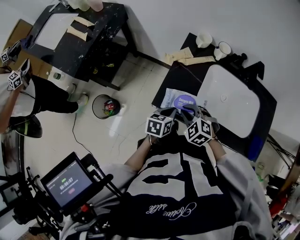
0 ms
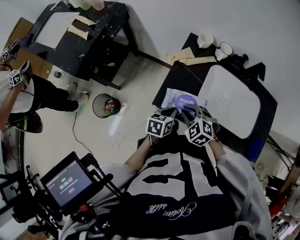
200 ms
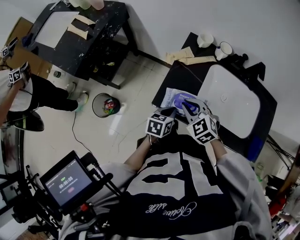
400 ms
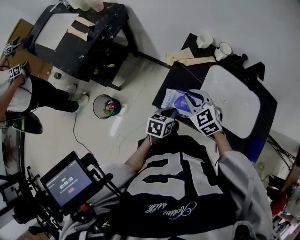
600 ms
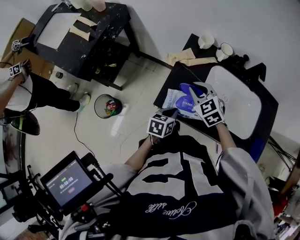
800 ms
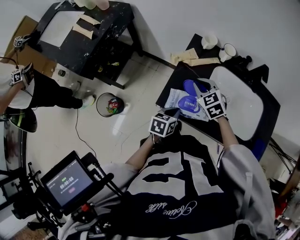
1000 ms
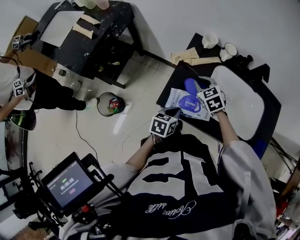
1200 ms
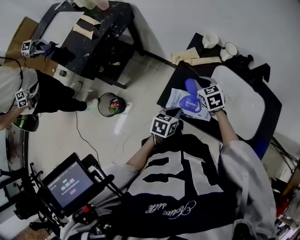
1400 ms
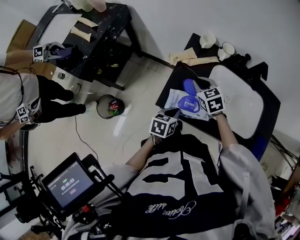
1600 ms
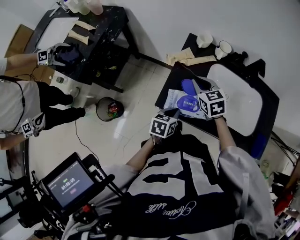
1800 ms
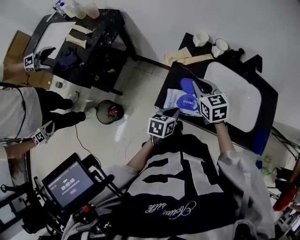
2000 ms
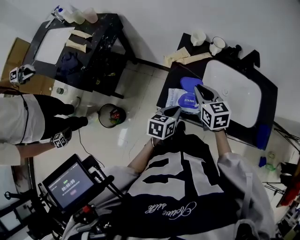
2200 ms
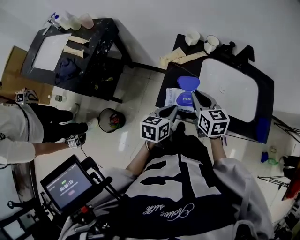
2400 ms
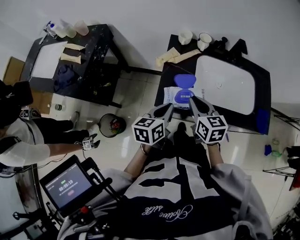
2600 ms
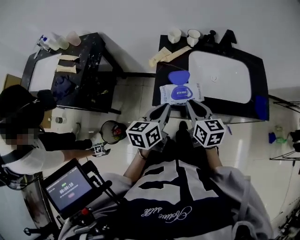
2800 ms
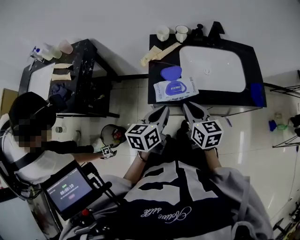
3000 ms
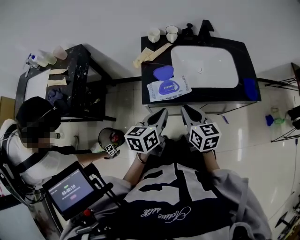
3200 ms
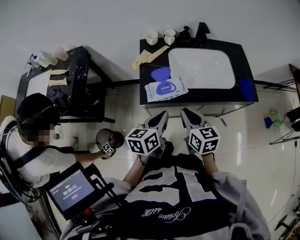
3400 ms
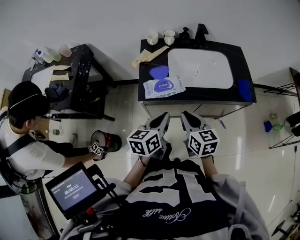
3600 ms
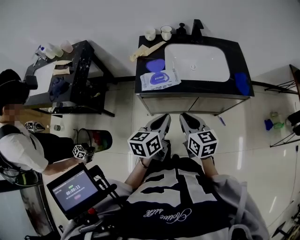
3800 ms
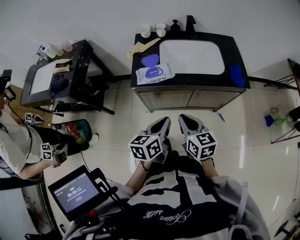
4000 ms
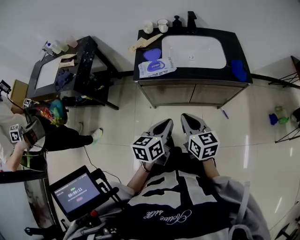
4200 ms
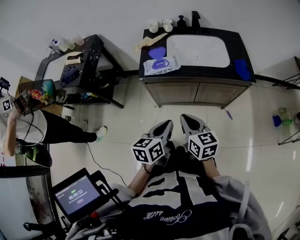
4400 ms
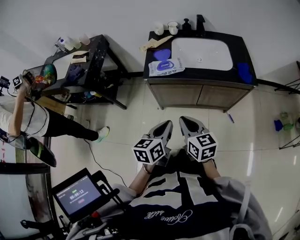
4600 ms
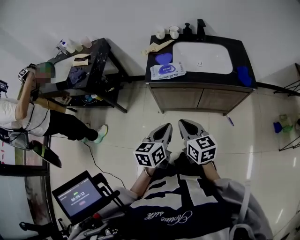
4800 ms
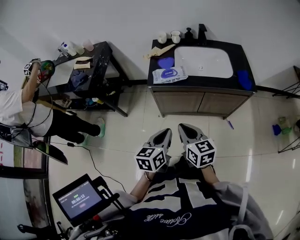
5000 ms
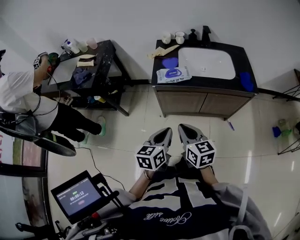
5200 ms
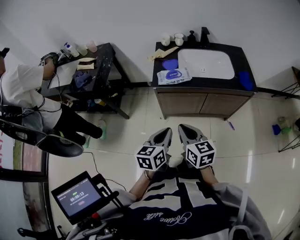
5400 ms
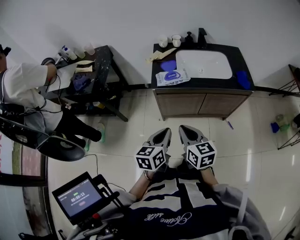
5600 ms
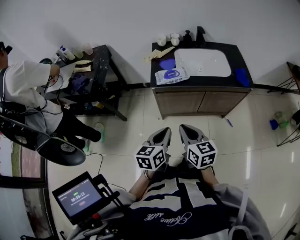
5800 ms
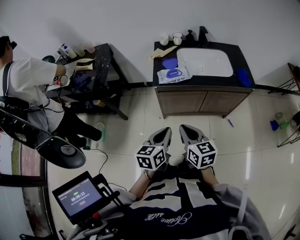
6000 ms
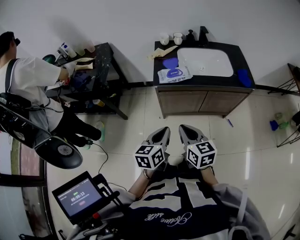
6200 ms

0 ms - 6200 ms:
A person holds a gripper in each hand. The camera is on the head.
0 ms - 1600 ms: The right gripper is displaced forward by some 15 cm, and changes its angle by roughly 30 degrees.
1600 ms - 3200 ms: The right gripper goes approximately 25 cm backward, and rotates some 50 degrees, while the left gripper heads upward and backward, covering about 20 cm, and rotates some 20 degrees.
3200 ms - 4600 ms: The left gripper moves backward and to the right, approximately 25 cm; the right gripper goes approximately 20 cm backward.
4600 ms - 6200 ms: Both grippers move to the left, roughly 10 cm.

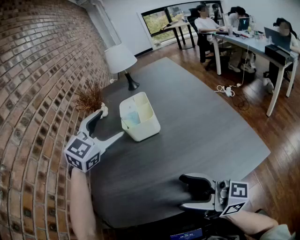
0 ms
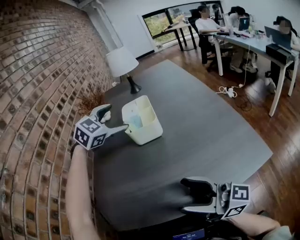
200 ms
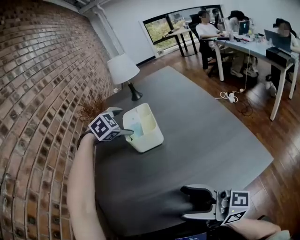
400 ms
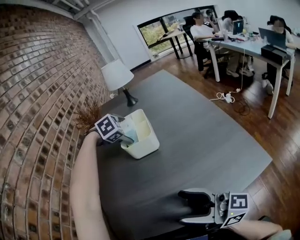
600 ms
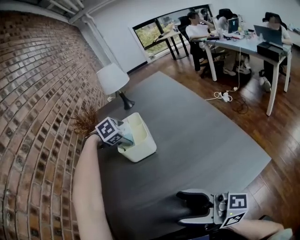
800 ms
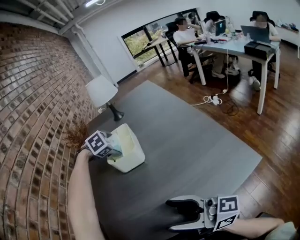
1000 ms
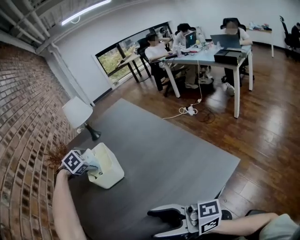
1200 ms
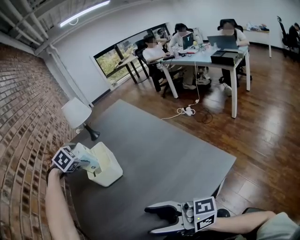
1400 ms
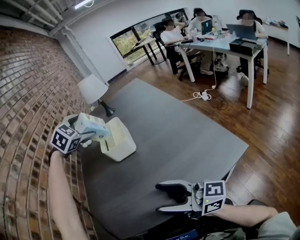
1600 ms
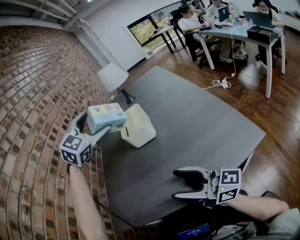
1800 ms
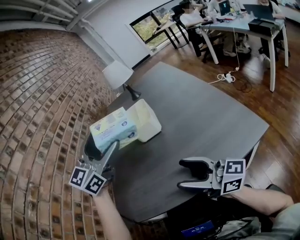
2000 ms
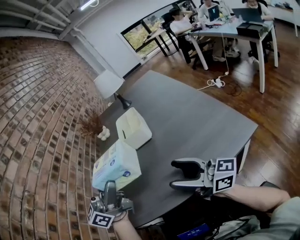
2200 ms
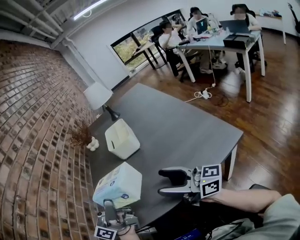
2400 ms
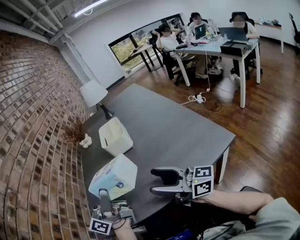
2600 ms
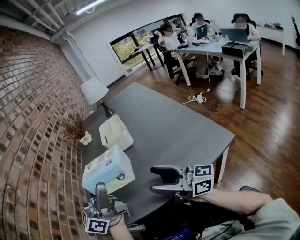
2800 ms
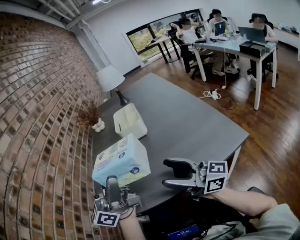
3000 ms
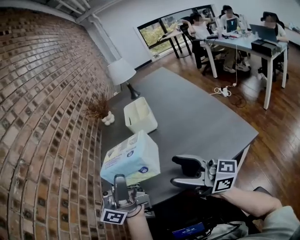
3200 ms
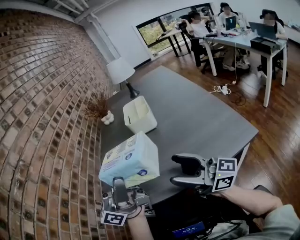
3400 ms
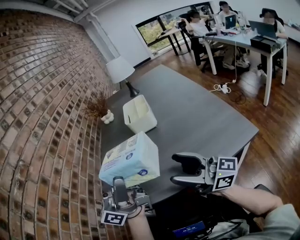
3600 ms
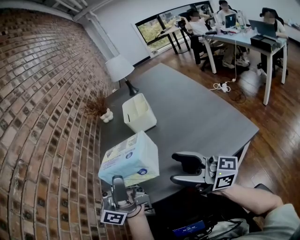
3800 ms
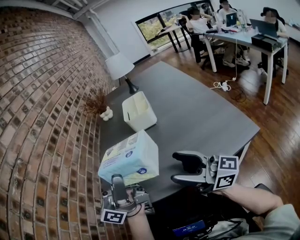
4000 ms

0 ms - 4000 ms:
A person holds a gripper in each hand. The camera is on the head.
0 ms - 1400 ms: The left gripper shifts approximately 15 cm forward and to the right, and angles its fingers downward, by some 30 degrees.
1400 ms - 2600 ms: The left gripper heads backward, covering about 35 cm, and angles its fingers upward, by about 90 degrees.
2600 ms - 4000 ms: The left gripper ends up about 5 cm from where it was.

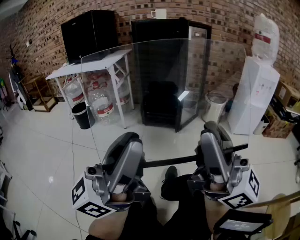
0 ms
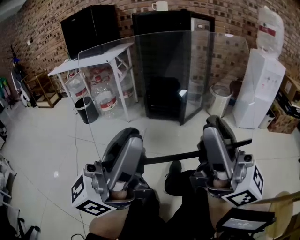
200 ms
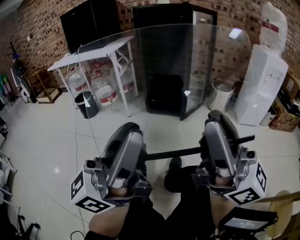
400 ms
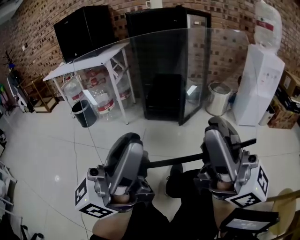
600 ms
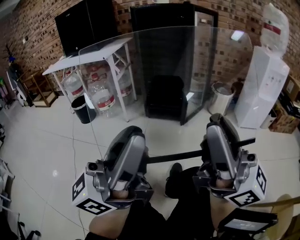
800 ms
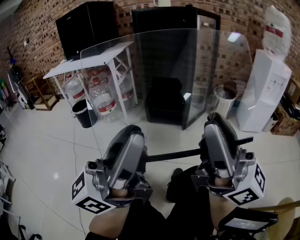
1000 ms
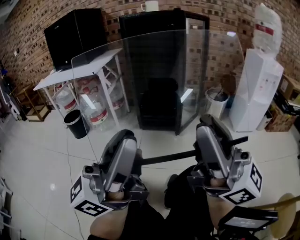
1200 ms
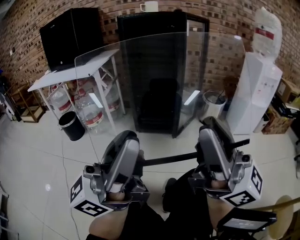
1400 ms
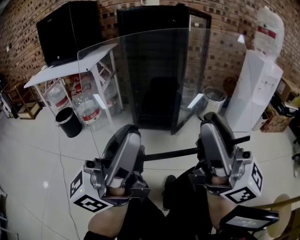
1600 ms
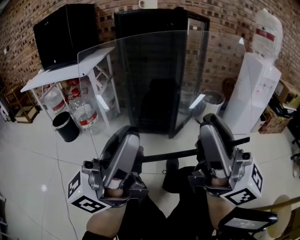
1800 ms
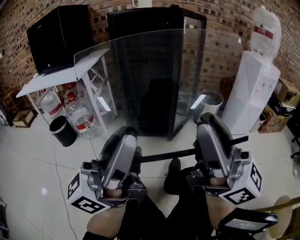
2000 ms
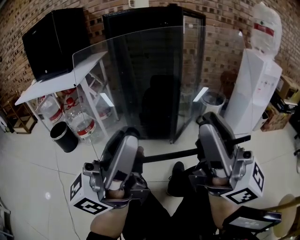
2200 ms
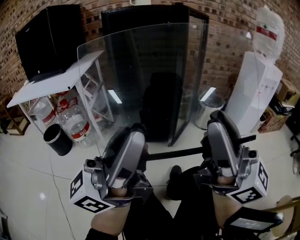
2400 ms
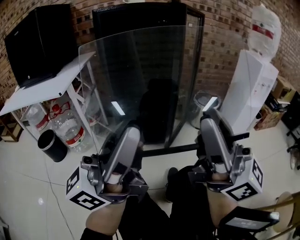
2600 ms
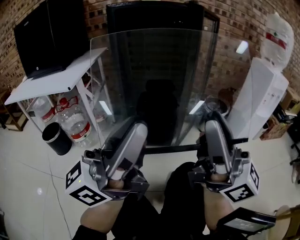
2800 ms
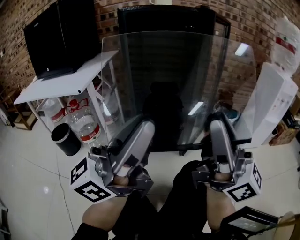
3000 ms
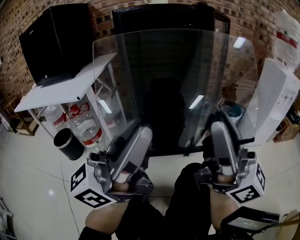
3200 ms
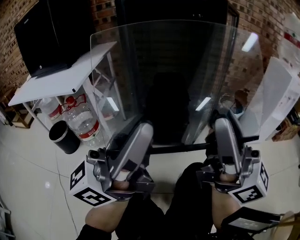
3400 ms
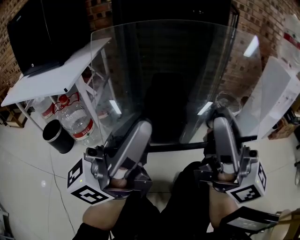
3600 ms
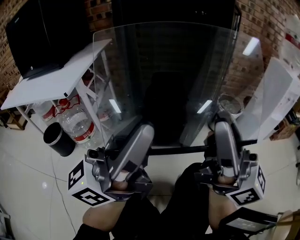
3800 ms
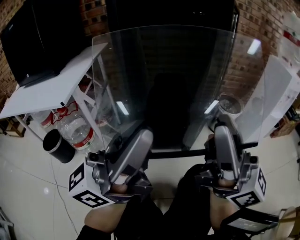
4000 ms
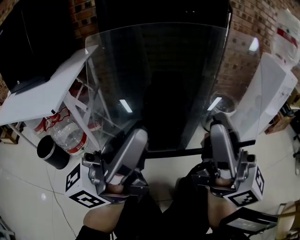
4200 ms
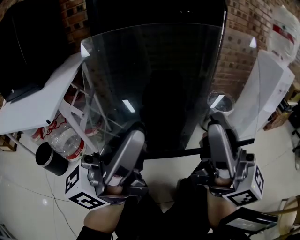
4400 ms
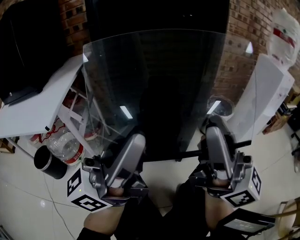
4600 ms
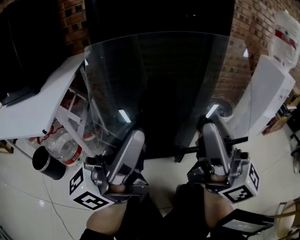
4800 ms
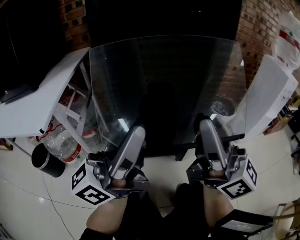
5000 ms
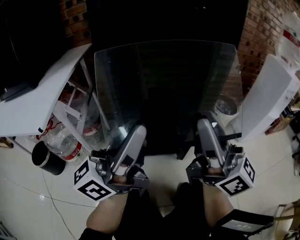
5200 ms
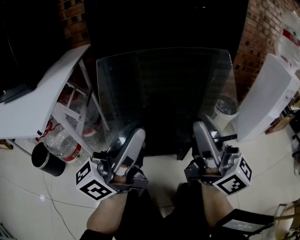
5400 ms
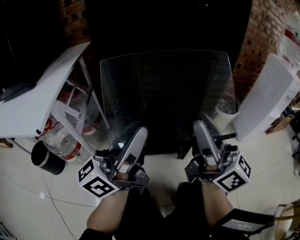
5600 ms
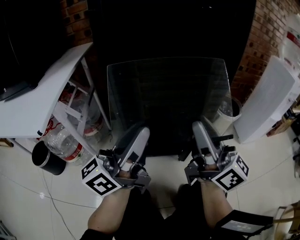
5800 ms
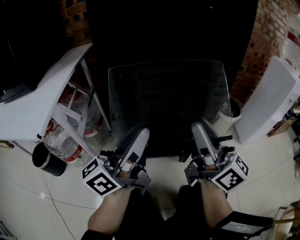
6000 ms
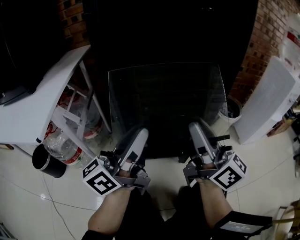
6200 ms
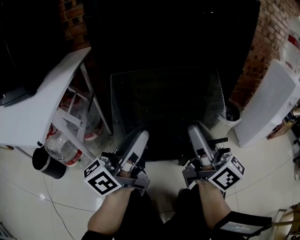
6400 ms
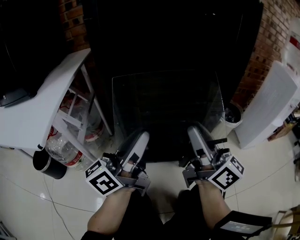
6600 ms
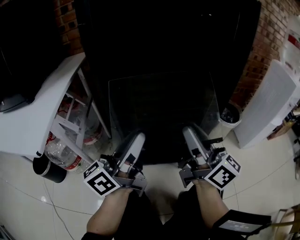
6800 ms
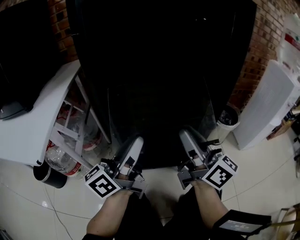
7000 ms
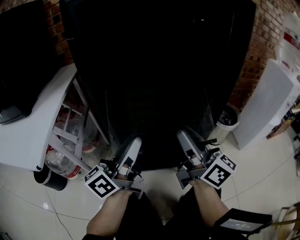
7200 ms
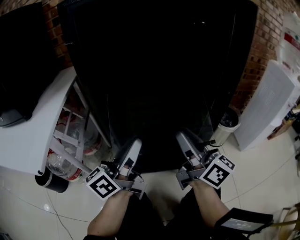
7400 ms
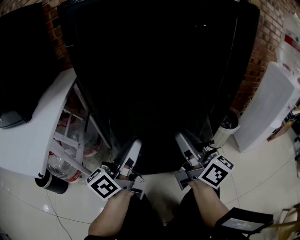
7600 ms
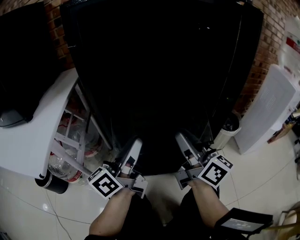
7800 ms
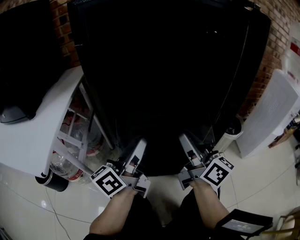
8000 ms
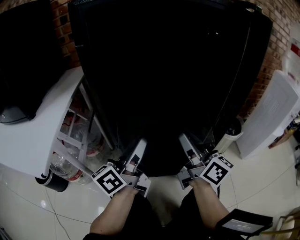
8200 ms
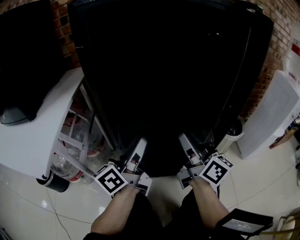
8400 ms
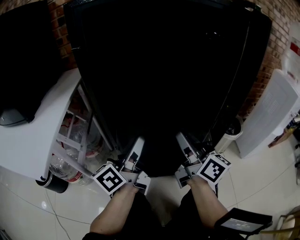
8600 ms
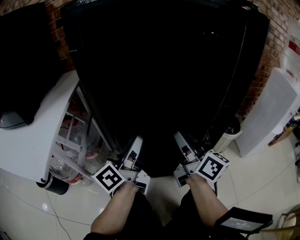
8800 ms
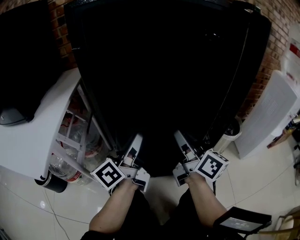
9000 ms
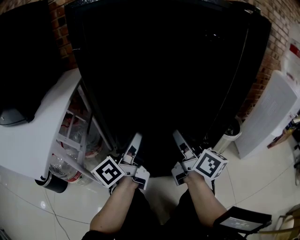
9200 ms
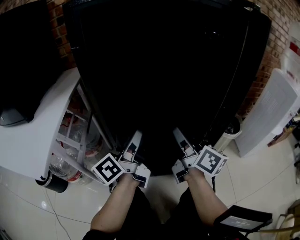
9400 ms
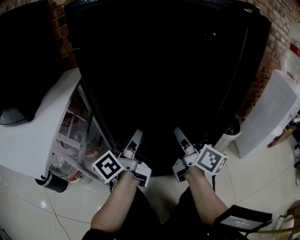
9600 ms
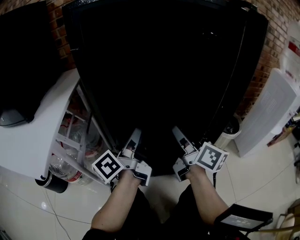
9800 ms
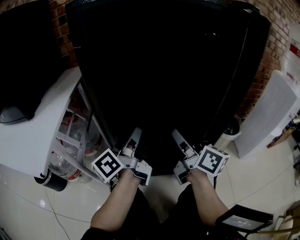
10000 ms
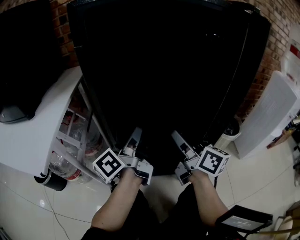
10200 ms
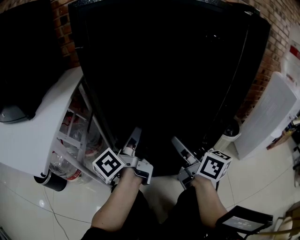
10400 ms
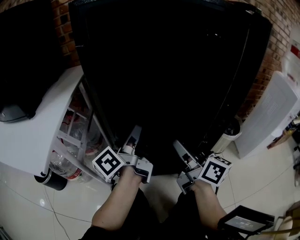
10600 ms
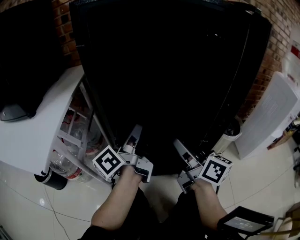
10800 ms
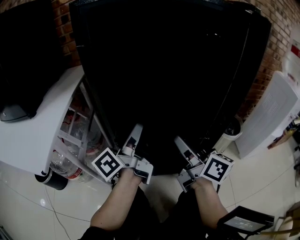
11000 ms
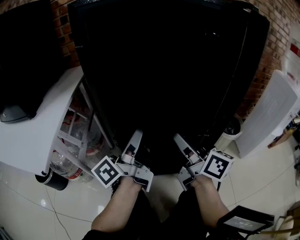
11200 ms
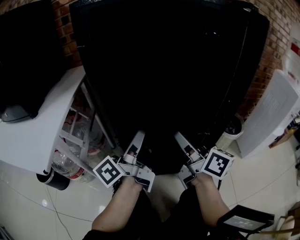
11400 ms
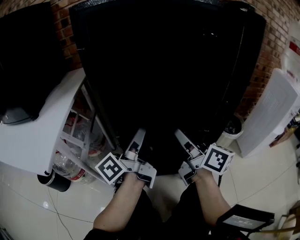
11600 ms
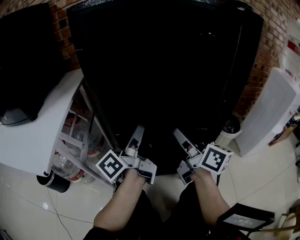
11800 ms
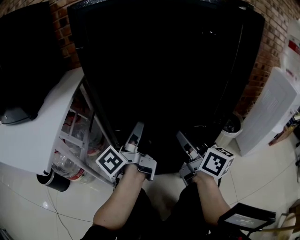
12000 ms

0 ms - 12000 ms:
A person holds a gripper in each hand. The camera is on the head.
0 ms - 1600 ms: Both grippers travel together forward, about 15 cm.
1600 ms - 3000 ms: The two grippers go roughly 20 cm forward.
3000 ms - 4400 ms: The right gripper moves forward, approximately 10 cm. The left gripper heads forward and to the left, covering about 15 cm.
4400 ms - 6000 ms: The grippers both shift forward and downward by some 20 cm.
6000 ms - 7600 ms: The grippers both shift forward by approximately 10 cm.
7600 ms - 9000 ms: The left gripper travels forward by about 5 cm; the right gripper moves roughly 5 cm.
9000 ms - 12000 ms: There are only small adjustments of the grippers.

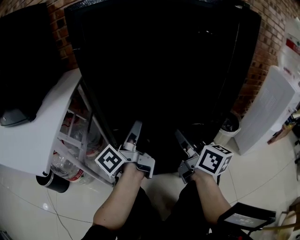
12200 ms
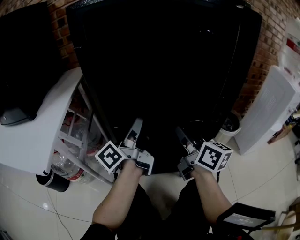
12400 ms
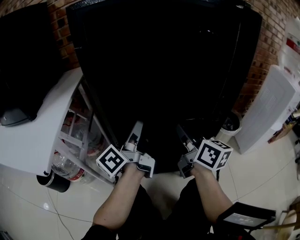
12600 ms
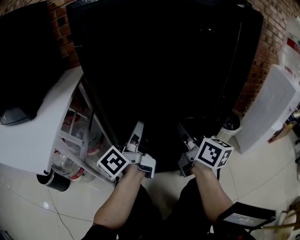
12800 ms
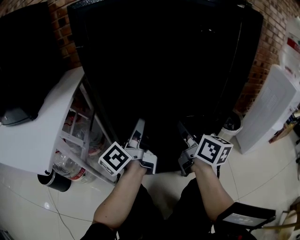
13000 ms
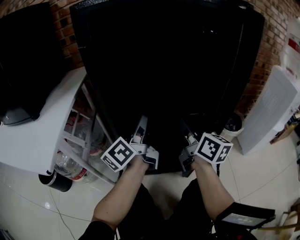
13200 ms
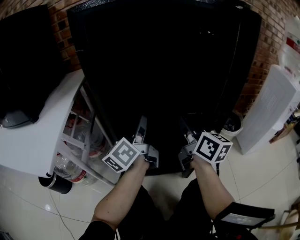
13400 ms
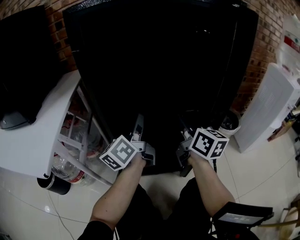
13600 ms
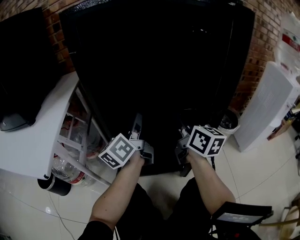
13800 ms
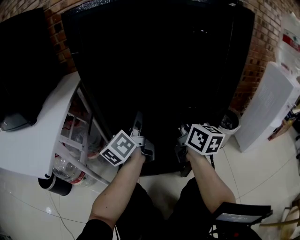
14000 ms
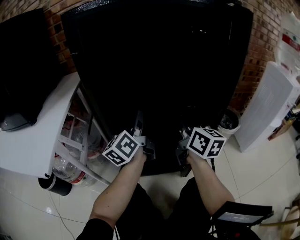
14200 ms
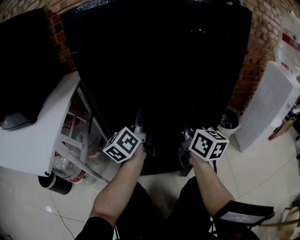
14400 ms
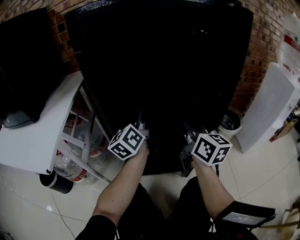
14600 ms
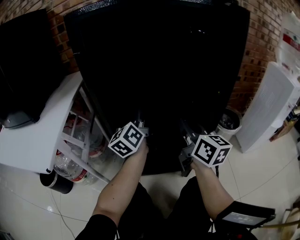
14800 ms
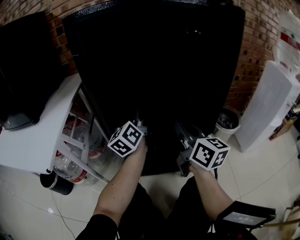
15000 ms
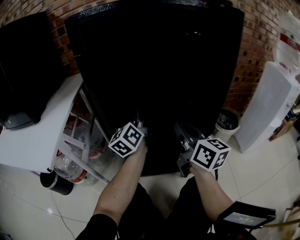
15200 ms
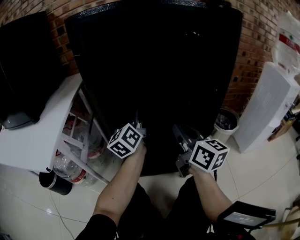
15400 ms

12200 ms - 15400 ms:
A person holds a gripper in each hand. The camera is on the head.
12200 ms - 13800 ms: The left gripper rotates about 30 degrees, while the right gripper goes roughly 5 cm forward.
13800 ms - 15400 ms: The right gripper heads backward, covering approximately 5 cm.
